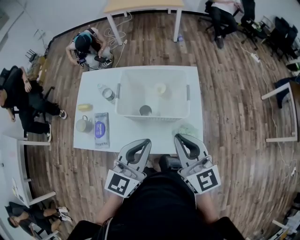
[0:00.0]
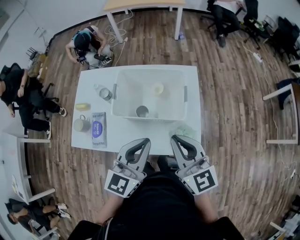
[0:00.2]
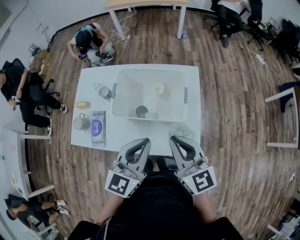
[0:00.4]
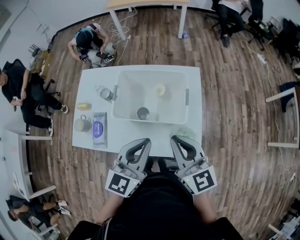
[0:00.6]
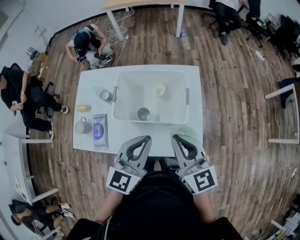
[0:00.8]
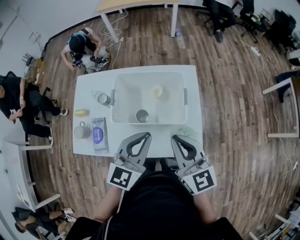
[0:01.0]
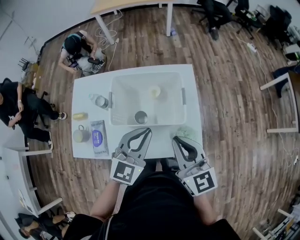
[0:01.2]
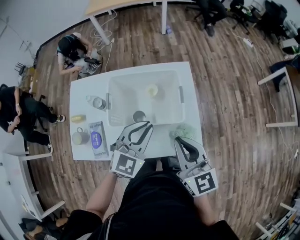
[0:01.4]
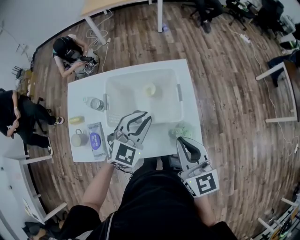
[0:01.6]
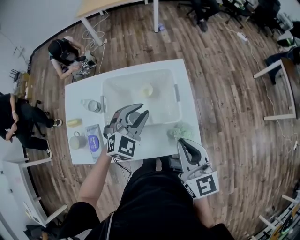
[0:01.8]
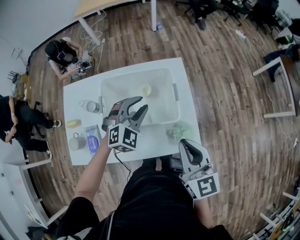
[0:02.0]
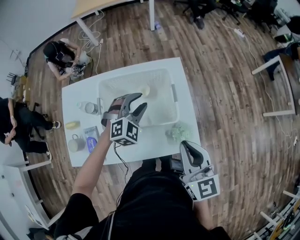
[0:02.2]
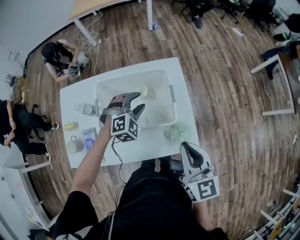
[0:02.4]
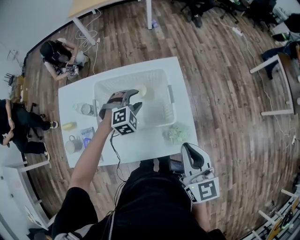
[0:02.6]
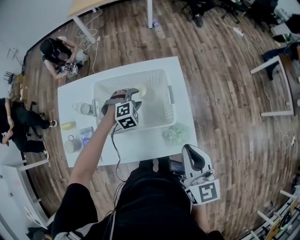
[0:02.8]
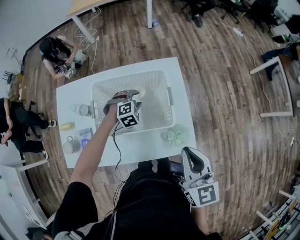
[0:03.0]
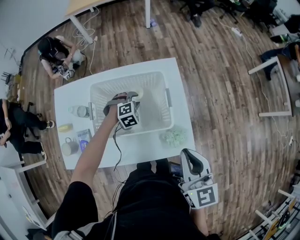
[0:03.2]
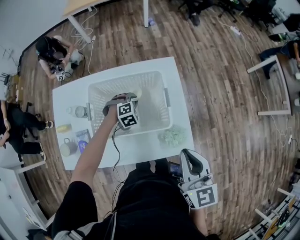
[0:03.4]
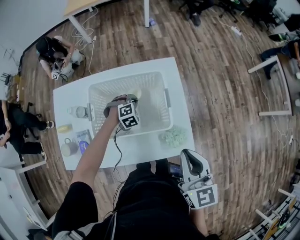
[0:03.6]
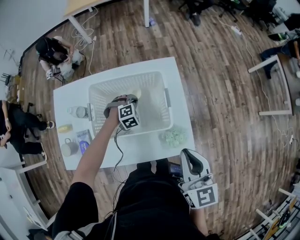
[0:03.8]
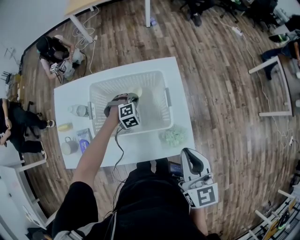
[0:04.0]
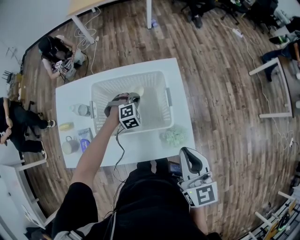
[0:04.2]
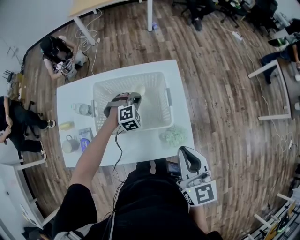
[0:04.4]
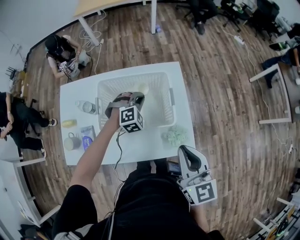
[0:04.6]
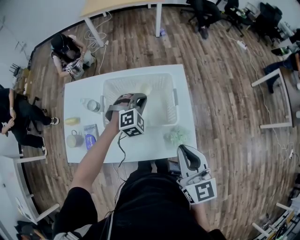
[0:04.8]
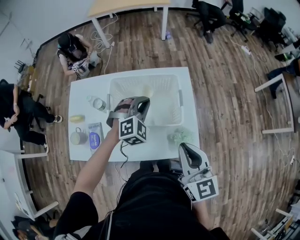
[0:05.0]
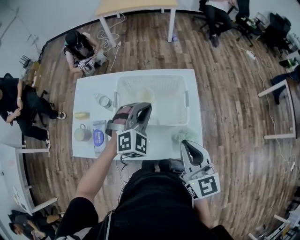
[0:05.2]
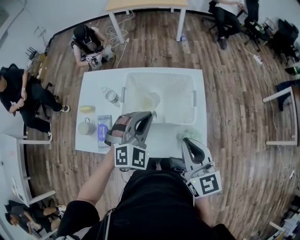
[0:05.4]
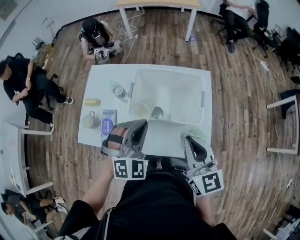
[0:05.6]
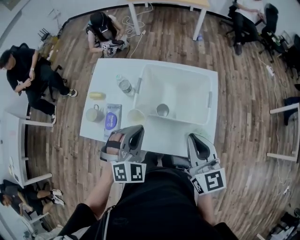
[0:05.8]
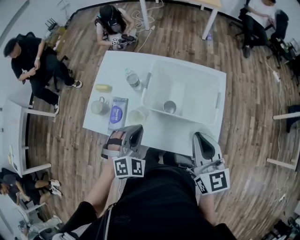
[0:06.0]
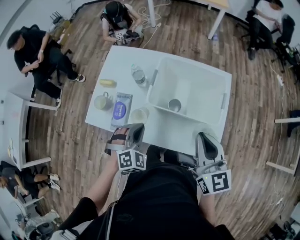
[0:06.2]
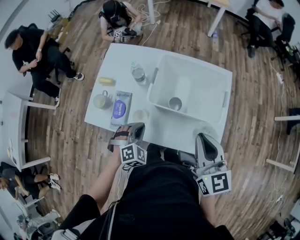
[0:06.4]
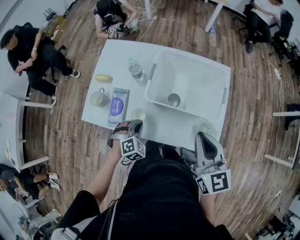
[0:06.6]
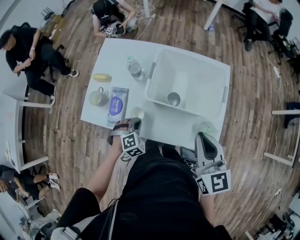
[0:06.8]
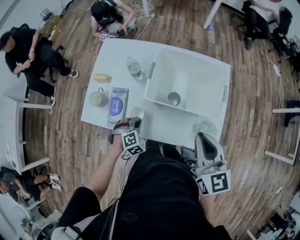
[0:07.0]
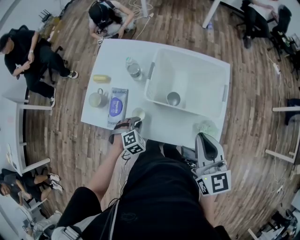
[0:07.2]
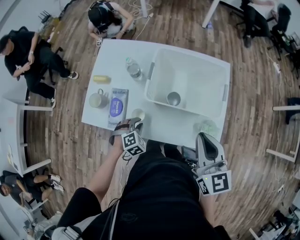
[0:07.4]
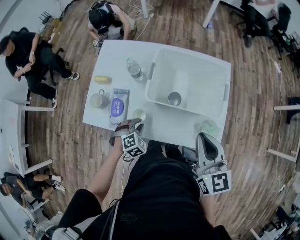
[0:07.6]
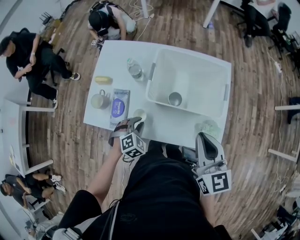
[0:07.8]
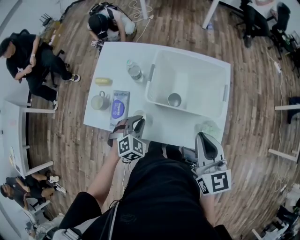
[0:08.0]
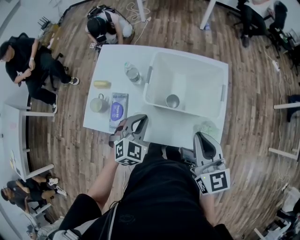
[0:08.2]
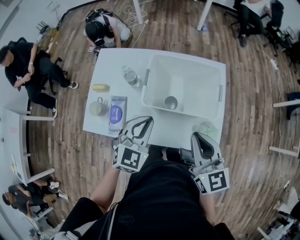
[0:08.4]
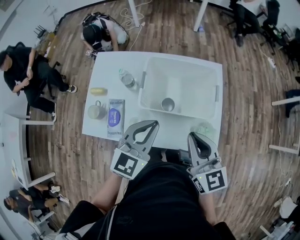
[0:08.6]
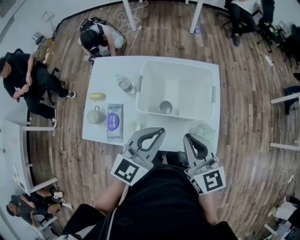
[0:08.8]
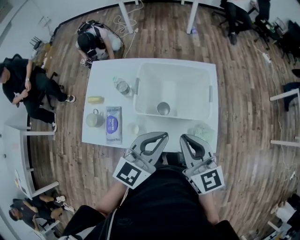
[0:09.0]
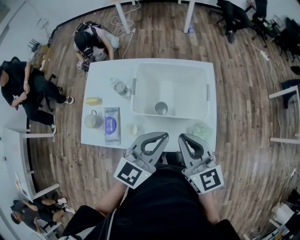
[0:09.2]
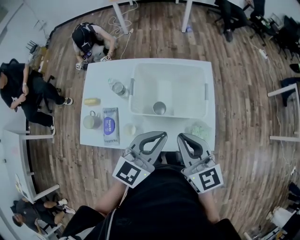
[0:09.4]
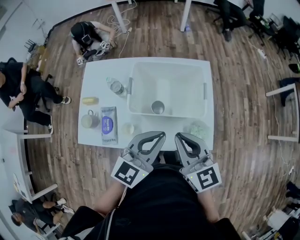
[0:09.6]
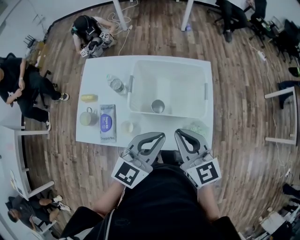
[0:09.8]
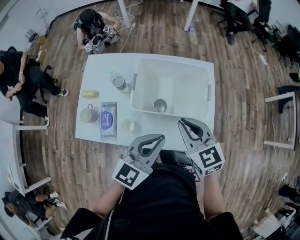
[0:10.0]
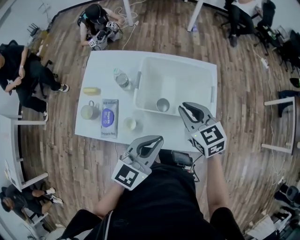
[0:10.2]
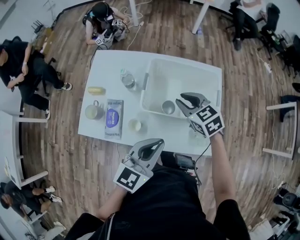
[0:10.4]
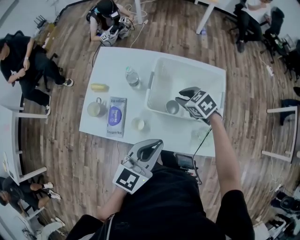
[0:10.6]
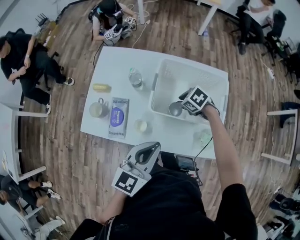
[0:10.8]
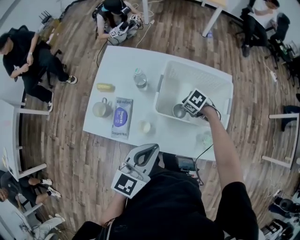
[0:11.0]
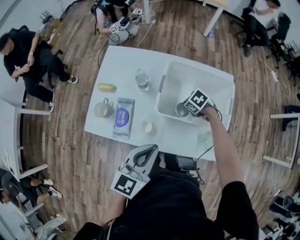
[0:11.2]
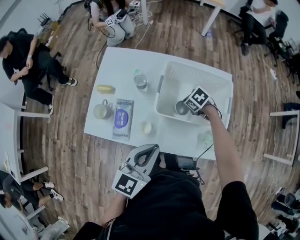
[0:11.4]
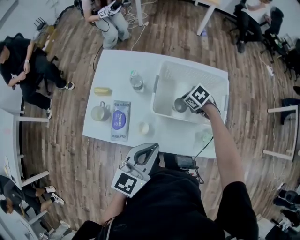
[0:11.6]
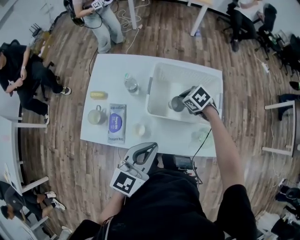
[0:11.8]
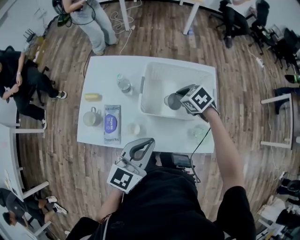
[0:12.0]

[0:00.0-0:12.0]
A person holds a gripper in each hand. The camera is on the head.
0.0 to 1.6 s: The left gripper is displaced forward and downward by roughly 15 cm, and rotates approximately 40 degrees.
1.6 to 3.0 s: The left gripper goes some 25 cm downward and forward, angles its fingers downward, by approximately 30 degrees, and opens its fingers; the right gripper moves about 5 cm.
3.0 to 4.4 s: The left gripper closes its fingers.
4.4 to 6.0 s: The left gripper travels backward, to the left and upward by approximately 30 cm, and rotates approximately 30 degrees; the right gripper is displaced to the left by some 10 cm.
6.0 to 7.6 s: The left gripper is displaced downward by roughly 20 cm, and swivels about 30 degrees.
7.6 to 9.0 s: The left gripper moves upward and to the right, some 30 cm, and points its fingers some 50 degrees further upward.
9.0 to 10.4 s: The left gripper moves roughly 5 cm; the right gripper heads forward and downward, covering about 20 cm, and turns by roughly 30 degrees.
10.4 to 12.0 s: The right gripper reaches approximately 20 cm downward, then returns, and rotates approximately 20 degrees.

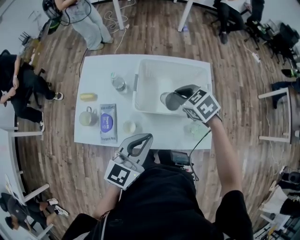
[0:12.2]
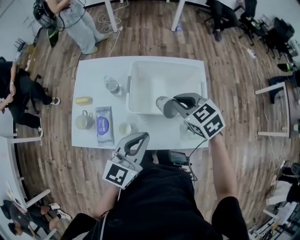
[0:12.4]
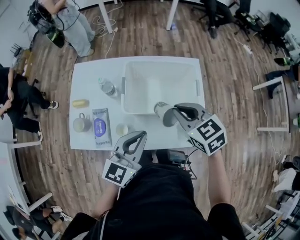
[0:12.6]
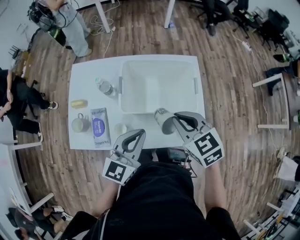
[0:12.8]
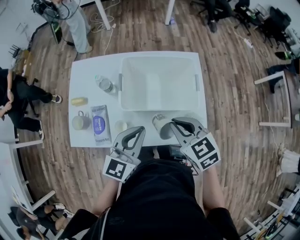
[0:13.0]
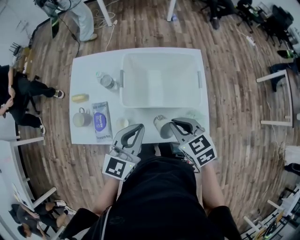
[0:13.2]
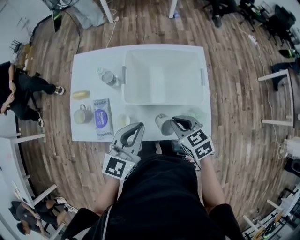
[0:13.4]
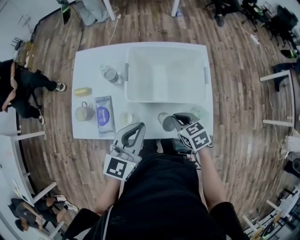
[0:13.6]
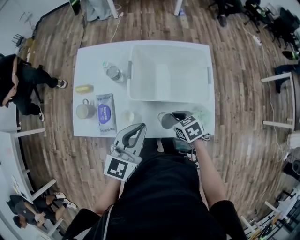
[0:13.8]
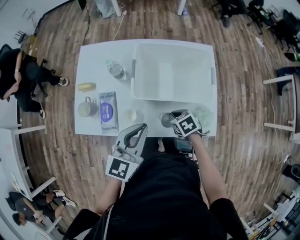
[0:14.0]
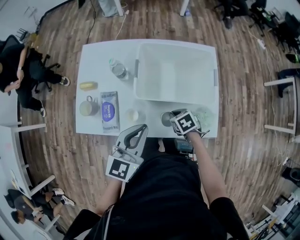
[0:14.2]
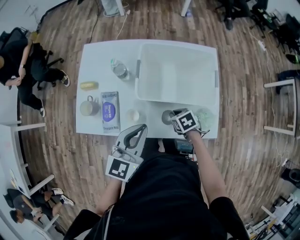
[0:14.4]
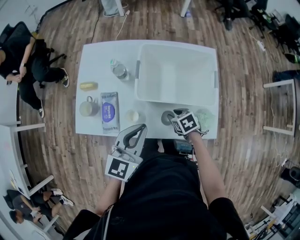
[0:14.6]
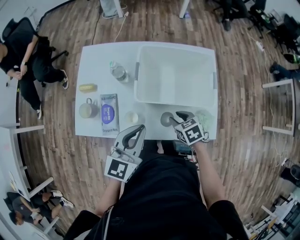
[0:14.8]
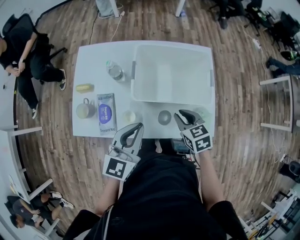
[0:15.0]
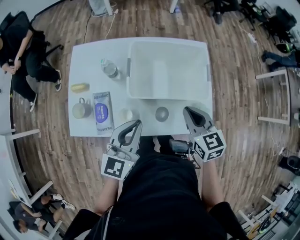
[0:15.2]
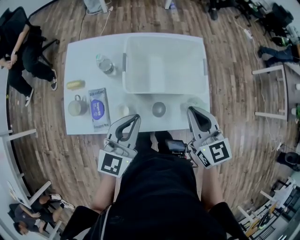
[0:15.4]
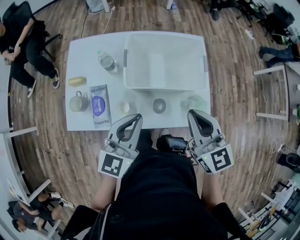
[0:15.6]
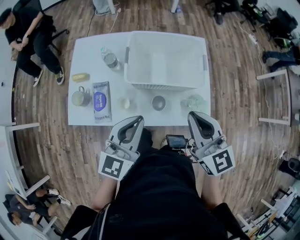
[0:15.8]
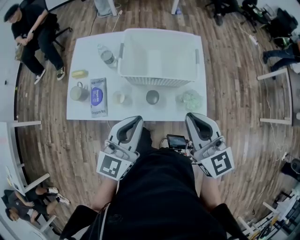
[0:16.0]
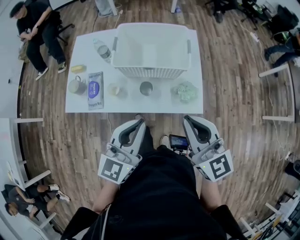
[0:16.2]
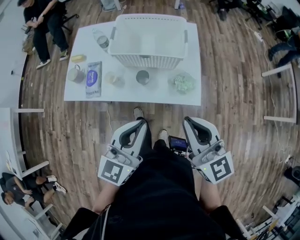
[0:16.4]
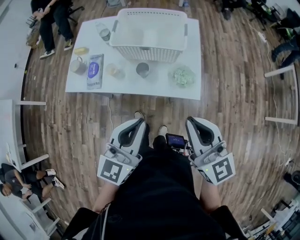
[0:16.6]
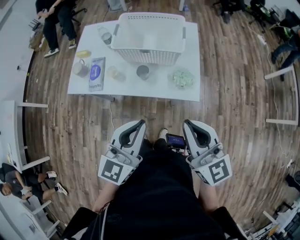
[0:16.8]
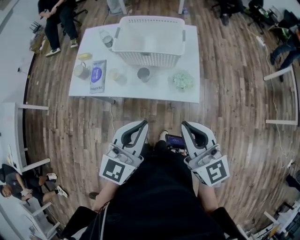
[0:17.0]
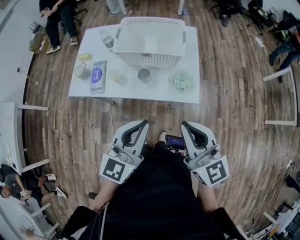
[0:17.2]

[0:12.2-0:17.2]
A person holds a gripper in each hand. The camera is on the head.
12.2 to 13.8 s: The right gripper heads backward and downward, covering some 20 cm, and swivels roughly 20 degrees.
13.8 to 15.6 s: The right gripper heads upward, covering some 25 cm, points its fingers roughly 40 degrees further upward, and opens, then closes once more.
15.6 to 17.2 s: The right gripper goes some 25 cm backward. The left gripper travels backward and to the right by some 25 cm.

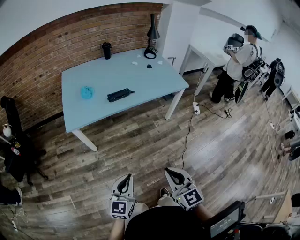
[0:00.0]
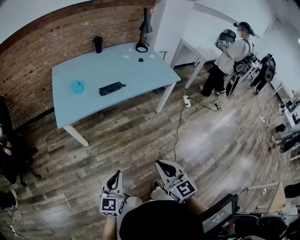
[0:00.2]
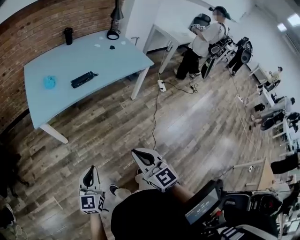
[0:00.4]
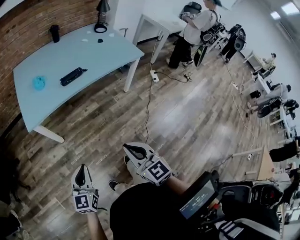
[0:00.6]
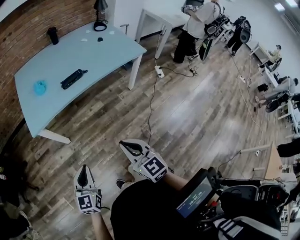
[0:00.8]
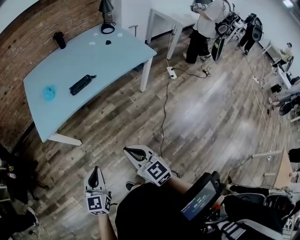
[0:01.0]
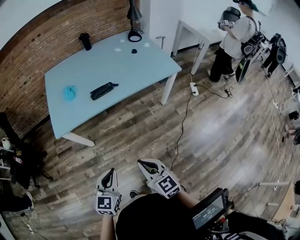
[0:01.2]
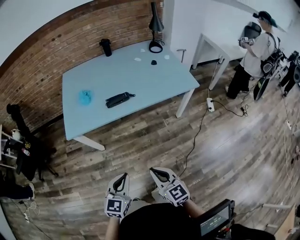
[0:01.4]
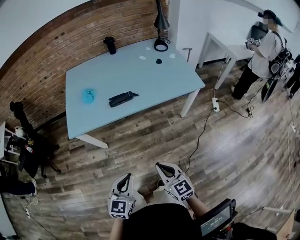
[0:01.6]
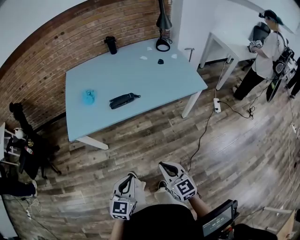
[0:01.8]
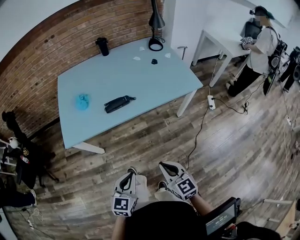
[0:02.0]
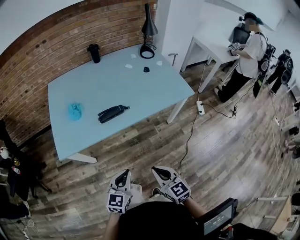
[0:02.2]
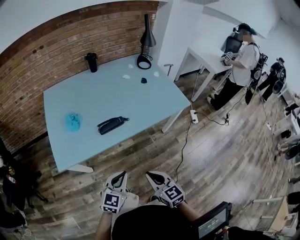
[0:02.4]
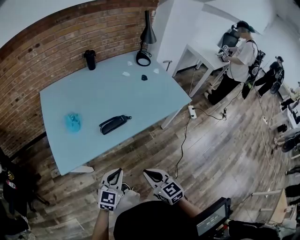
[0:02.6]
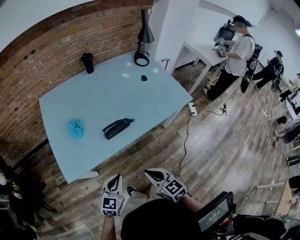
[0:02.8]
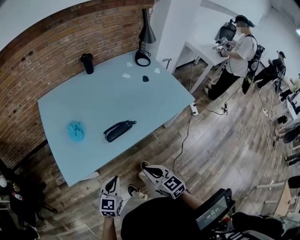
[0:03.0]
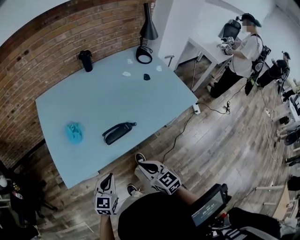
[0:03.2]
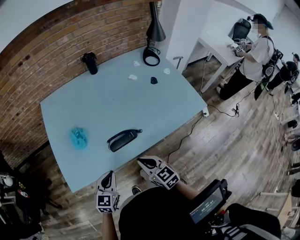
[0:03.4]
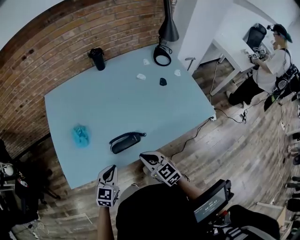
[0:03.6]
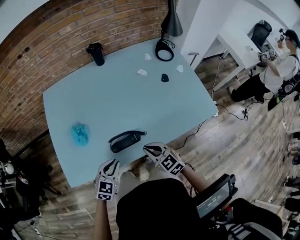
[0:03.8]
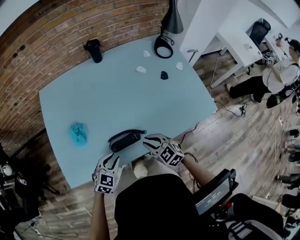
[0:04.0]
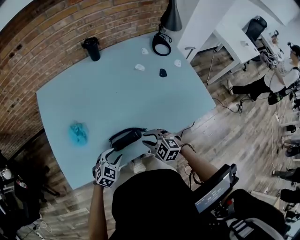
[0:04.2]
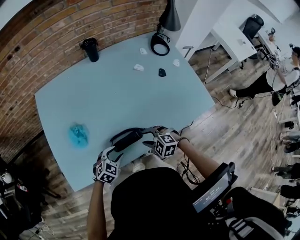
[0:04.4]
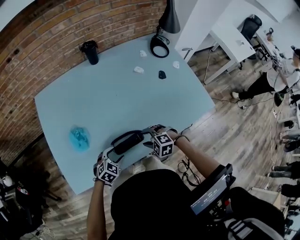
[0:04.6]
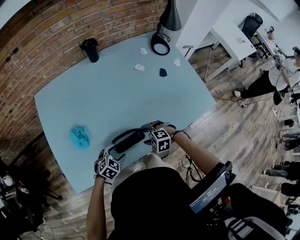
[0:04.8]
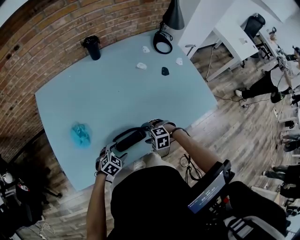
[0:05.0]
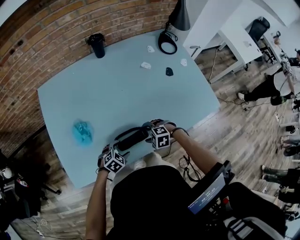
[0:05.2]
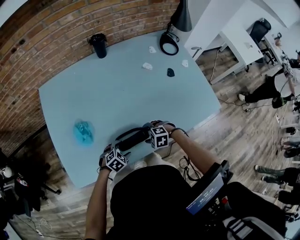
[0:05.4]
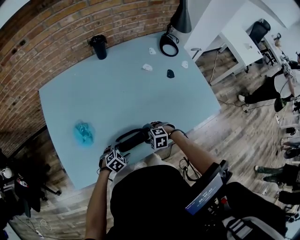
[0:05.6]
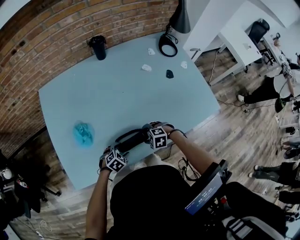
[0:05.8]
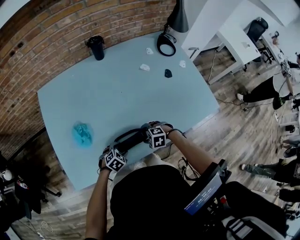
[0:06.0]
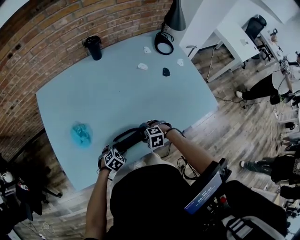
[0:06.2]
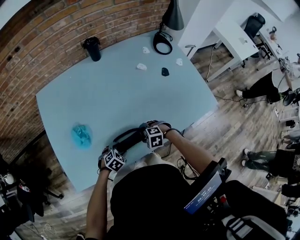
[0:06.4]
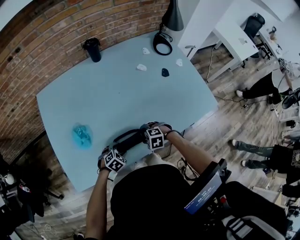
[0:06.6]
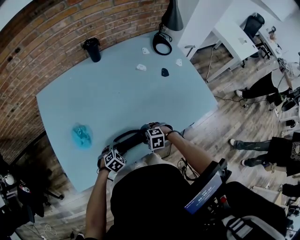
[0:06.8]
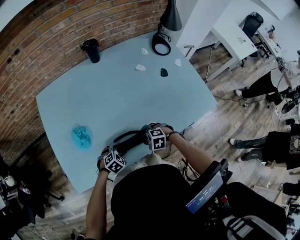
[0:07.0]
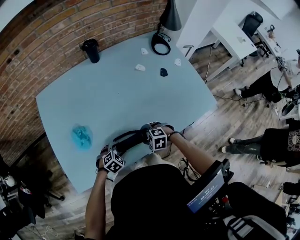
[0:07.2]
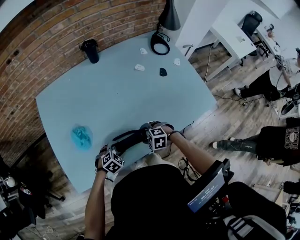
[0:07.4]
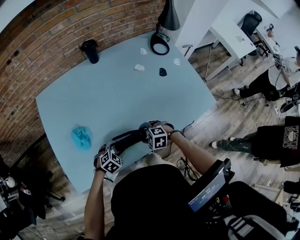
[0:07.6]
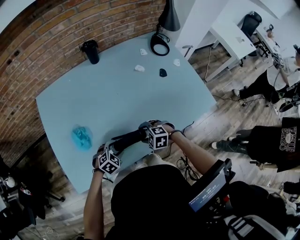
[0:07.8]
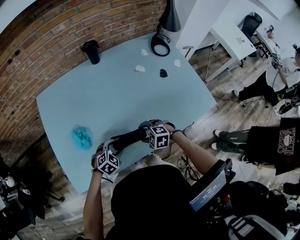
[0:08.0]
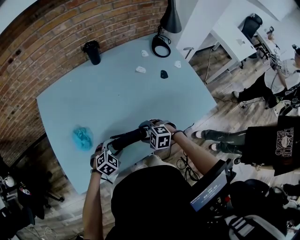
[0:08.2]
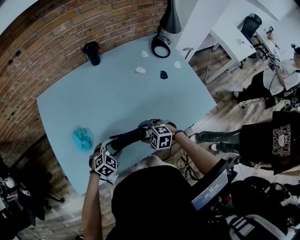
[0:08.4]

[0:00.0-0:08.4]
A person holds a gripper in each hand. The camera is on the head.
0.0 to 1.4 s: The right gripper heads forward and downward, covering approximately 15 cm. Meanwhile the left gripper shifts approximately 10 cm forward, and travels to the left and back again, roughly 10 cm each way.
1.4 to 2.8 s: The grippers both shift forward and to the left by some 25 cm.
2.8 to 4.2 s: The right gripper heads forward, covering approximately 30 cm, and swivels some 50 degrees; the left gripper moves forward and downward, roughly 25 cm, swivels approximately 30 degrees, and opens up.
4.2 to 5.6 s: Both grippers travel together downward, about 10 cm. The left gripper changes its angle by about 20 degrees, and opens. Meanwhile the right gripper swivels some 30 degrees, and opens its fingers.
5.6 to 7.0 s: The grippers move only a little.
7.0 to 8.4 s: The grippers both shift upward by roughly 10 cm.
